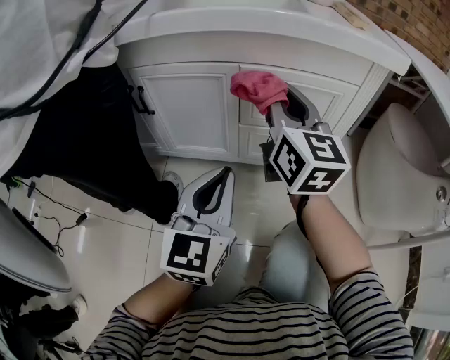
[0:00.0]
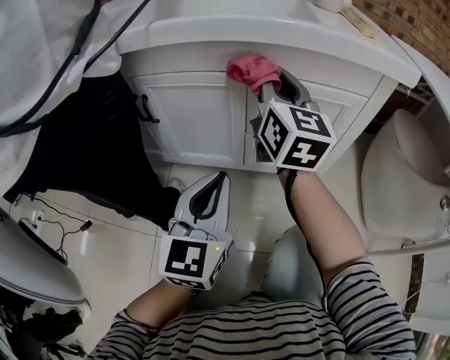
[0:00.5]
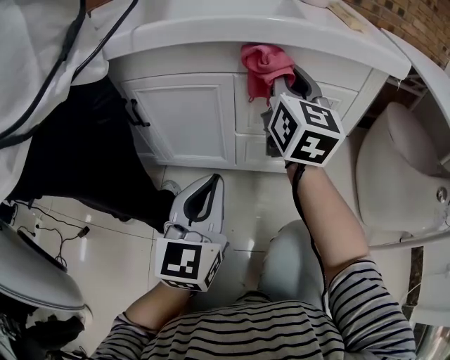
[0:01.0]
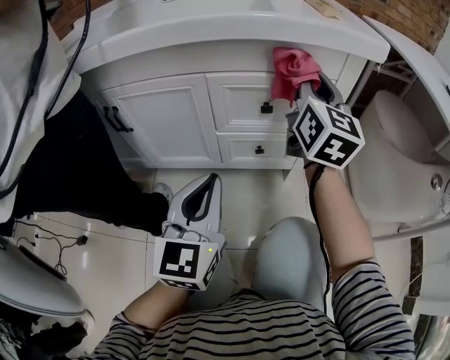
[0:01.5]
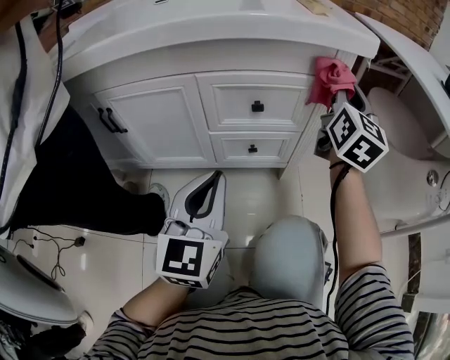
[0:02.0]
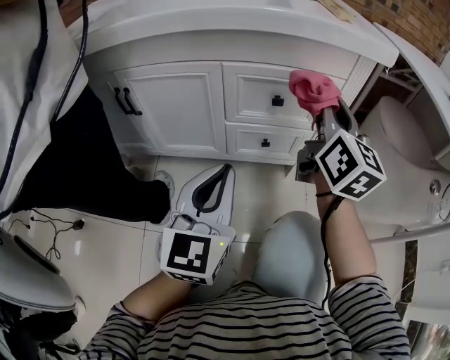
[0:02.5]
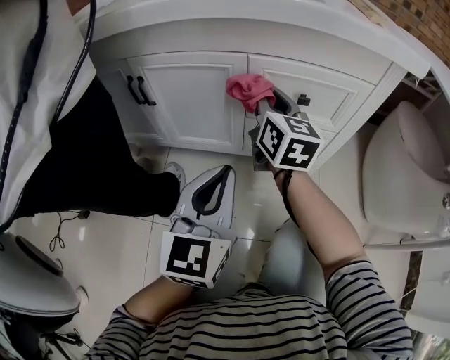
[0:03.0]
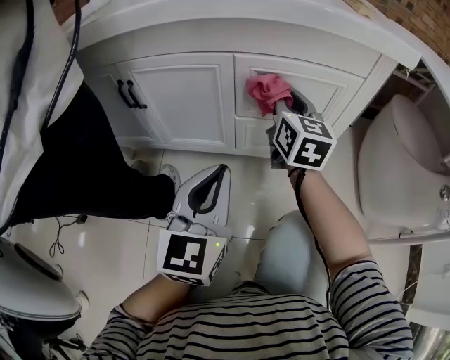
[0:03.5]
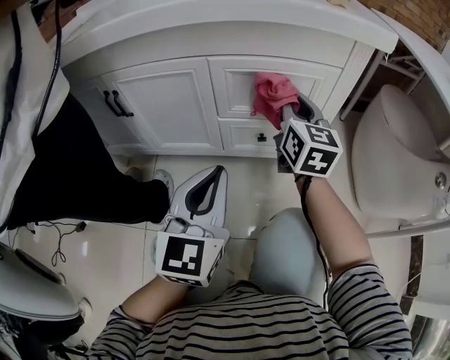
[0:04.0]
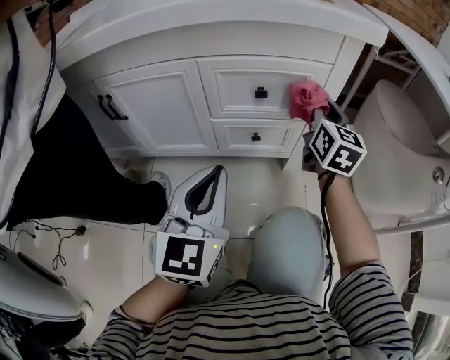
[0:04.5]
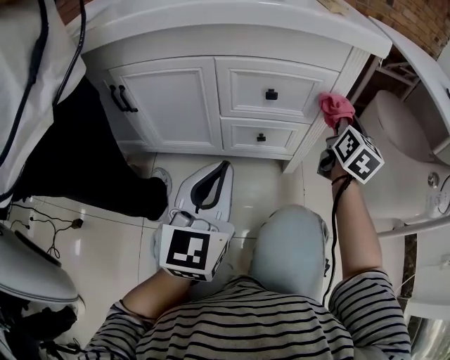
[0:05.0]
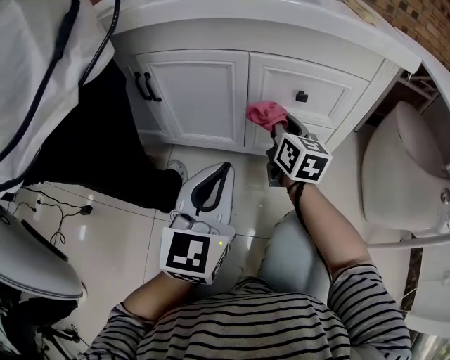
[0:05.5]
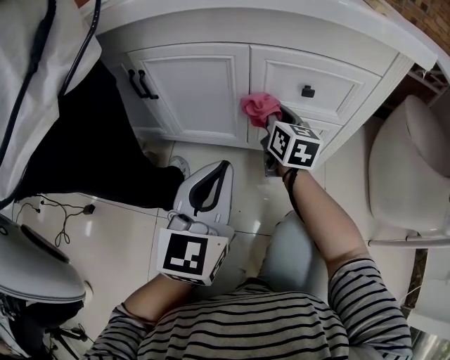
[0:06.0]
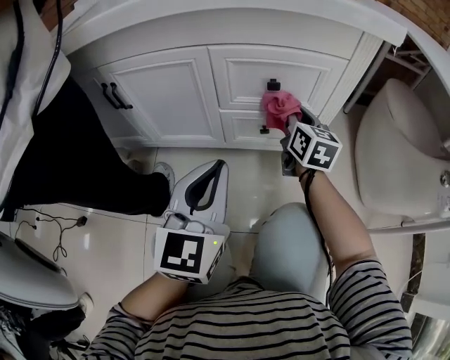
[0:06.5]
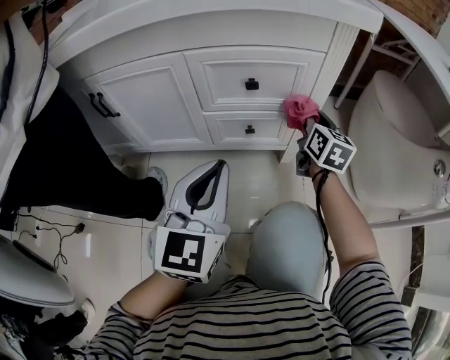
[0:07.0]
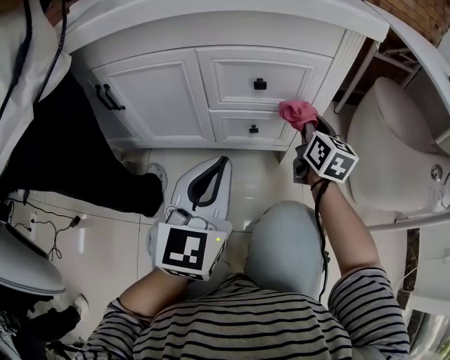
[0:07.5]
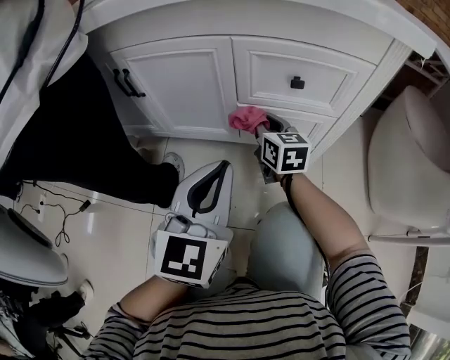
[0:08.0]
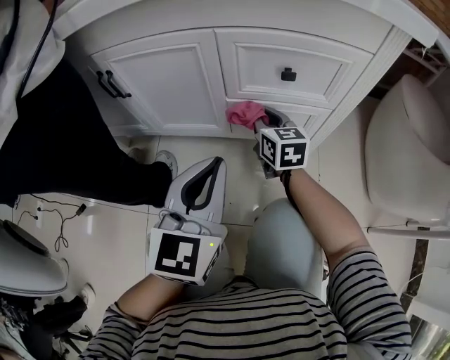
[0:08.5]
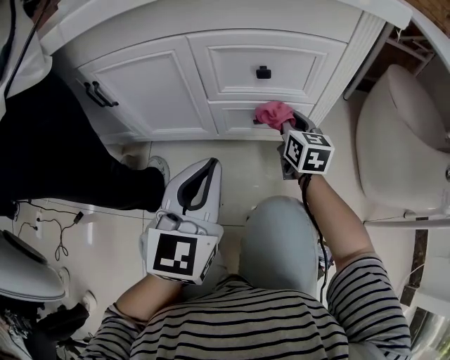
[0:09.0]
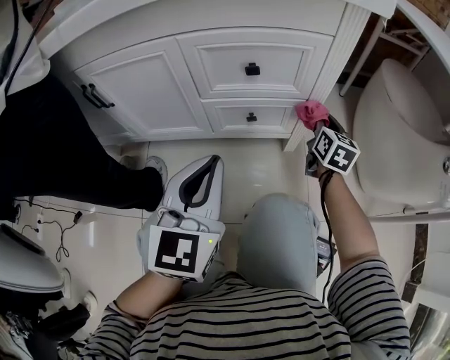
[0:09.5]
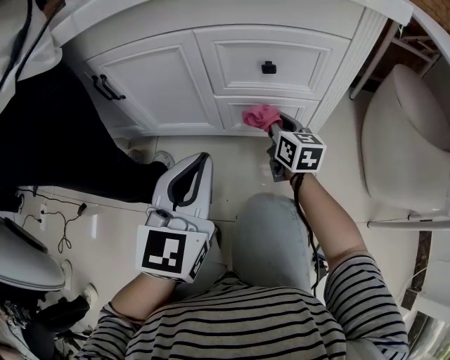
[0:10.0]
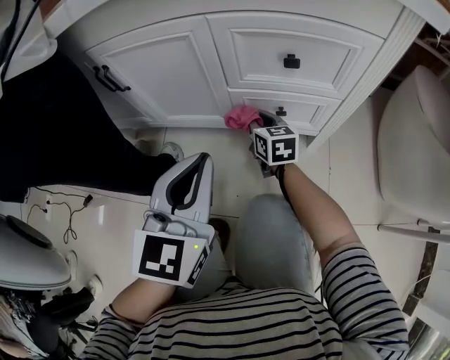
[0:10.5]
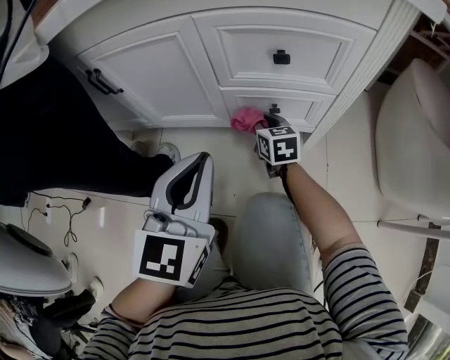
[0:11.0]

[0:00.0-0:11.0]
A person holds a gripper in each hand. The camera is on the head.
0:00.0 to 0:02.0: The left gripper heads to the right, covering approximately 5 cm; the right gripper travels to the right by about 25 cm, and swivels roughly 30 degrees.
0:02.0 to 0:03.5: The left gripper is displaced to the left by roughly 5 cm, while the right gripper heads to the left and downward, covering roughly 25 cm, and rotates some 20 degrees.
0:03.5 to 0:05.5: The right gripper heads downward, covering roughly 5 cm, and travels to the right and back again, approximately 25 cm each way.
0:05.5 to 0:07.5: The right gripper moves to the right, roughly 20 cm. The left gripper goes about 10 cm to the right.
0:07.5 to 0:09.0: The right gripper goes some 10 cm downward, and moves roughly 20 cm to the left and comes back.
0:09.0 to 0:11.0: The right gripper heads to the left and downward, covering approximately 15 cm.

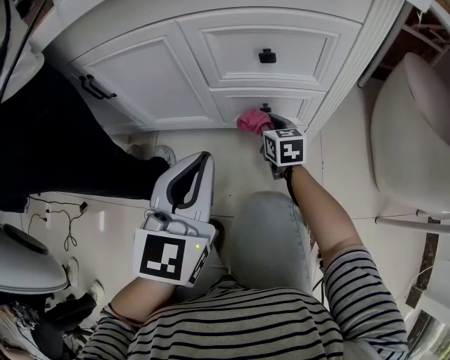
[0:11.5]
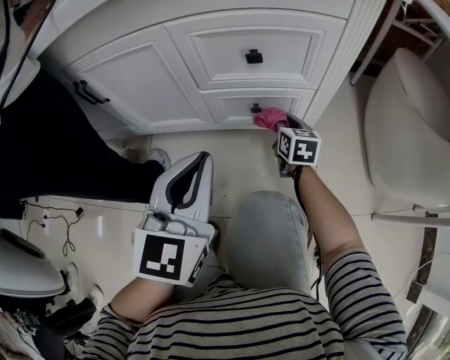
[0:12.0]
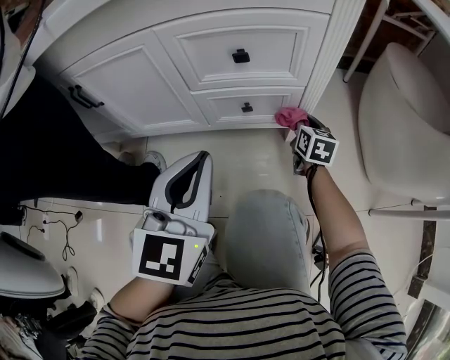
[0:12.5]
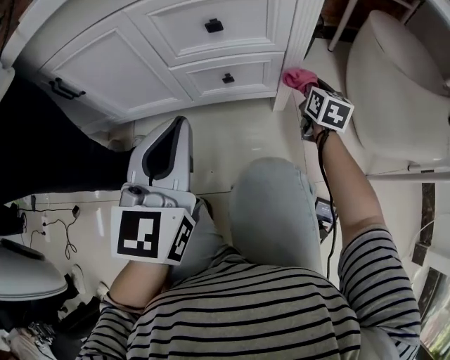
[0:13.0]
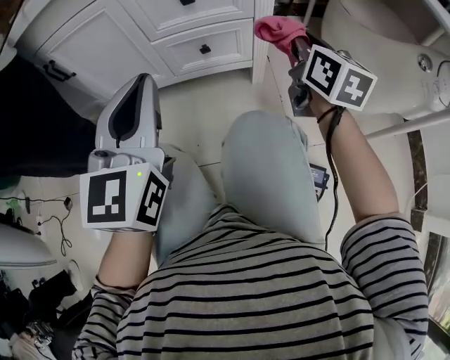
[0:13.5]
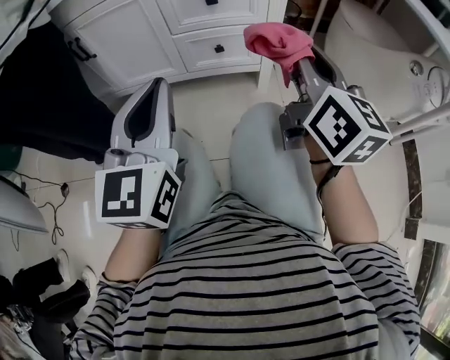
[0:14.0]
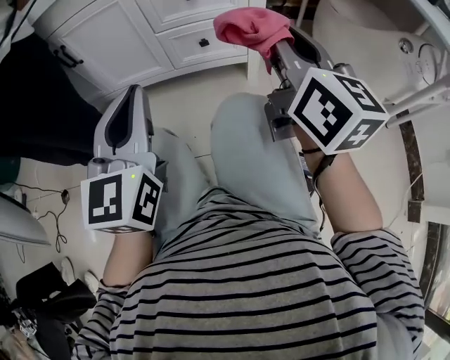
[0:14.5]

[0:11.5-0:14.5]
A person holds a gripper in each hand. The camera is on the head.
0:11.5 to 0:13.0: The right gripper shifts approximately 25 cm to the right, and rotates roughly 30 degrees.
0:13.0 to 0:14.5: The left gripper moves backward, roughly 15 cm; the right gripper heads upward and backward, covering about 40 cm, and tips its fingers upward by about 30 degrees.

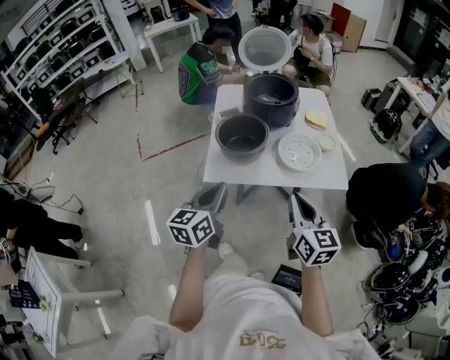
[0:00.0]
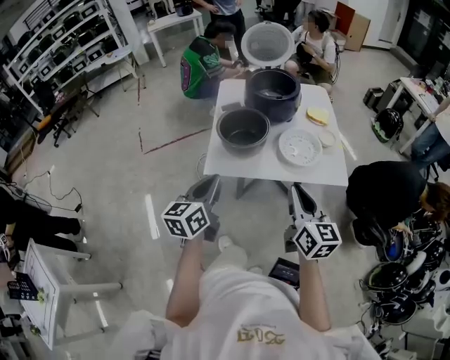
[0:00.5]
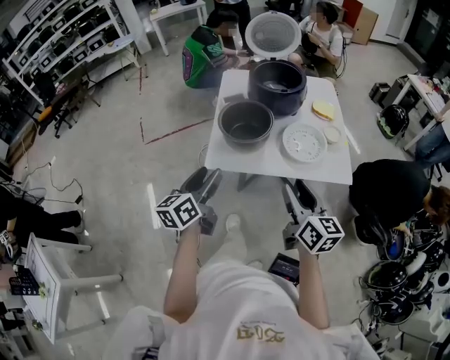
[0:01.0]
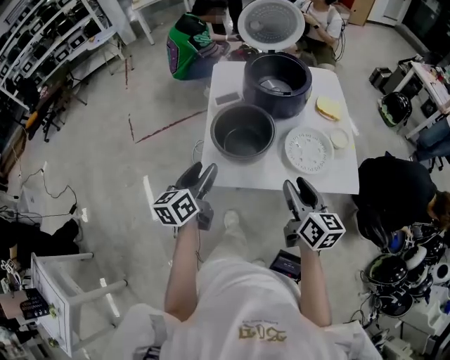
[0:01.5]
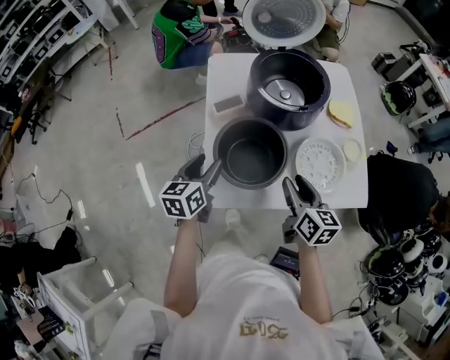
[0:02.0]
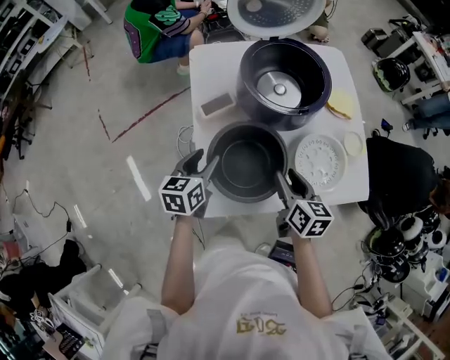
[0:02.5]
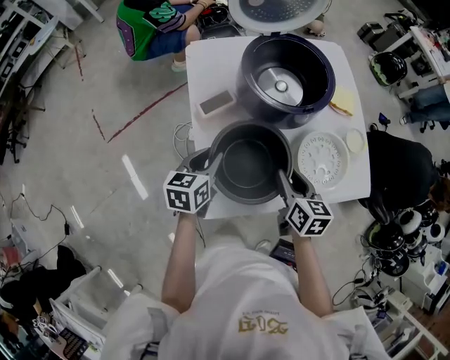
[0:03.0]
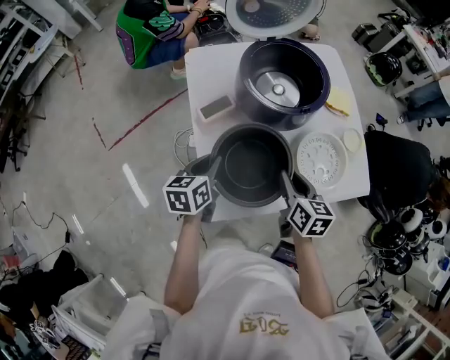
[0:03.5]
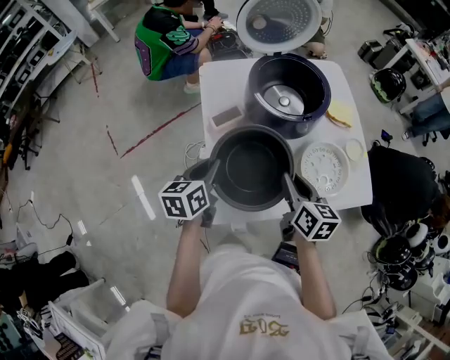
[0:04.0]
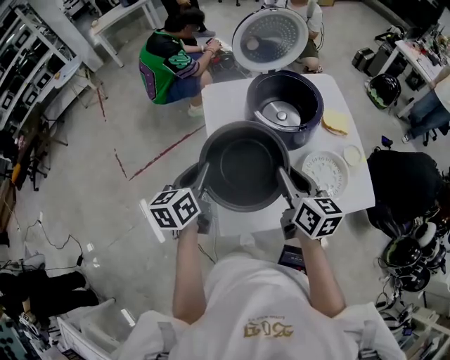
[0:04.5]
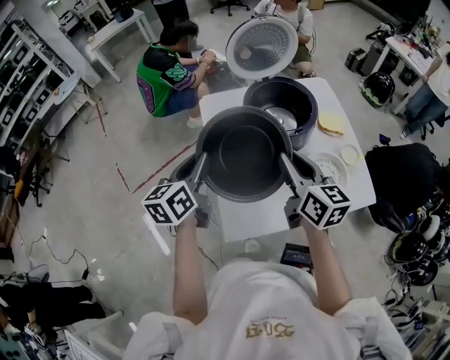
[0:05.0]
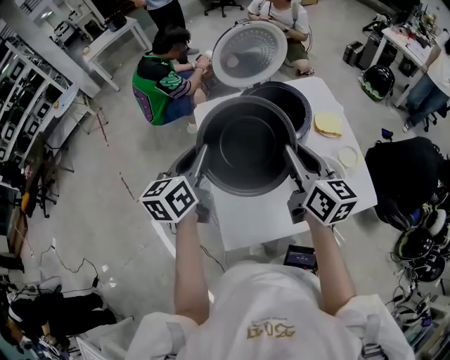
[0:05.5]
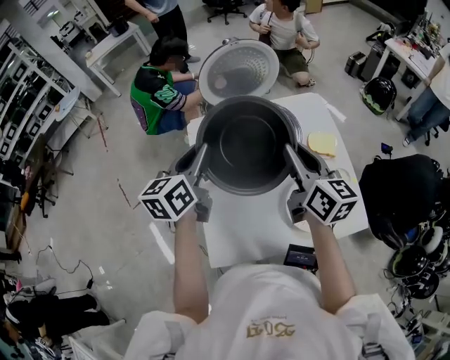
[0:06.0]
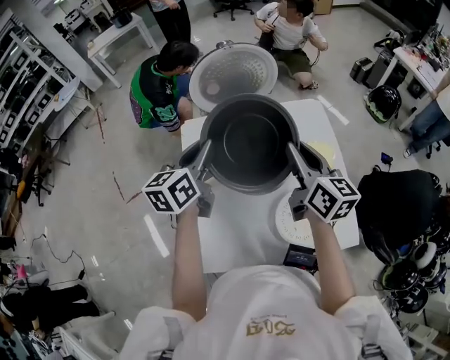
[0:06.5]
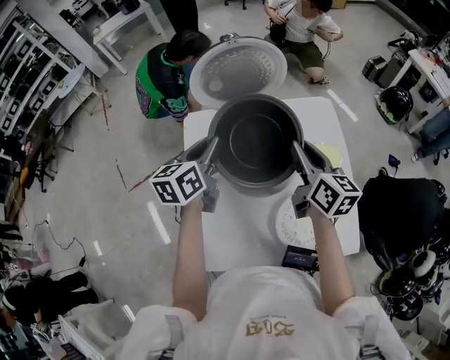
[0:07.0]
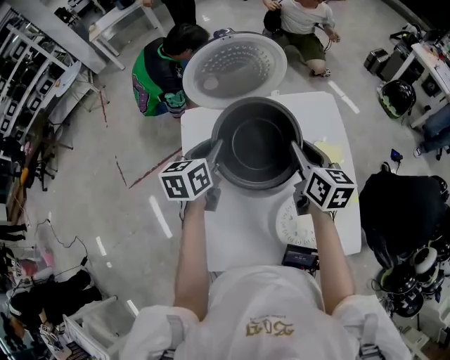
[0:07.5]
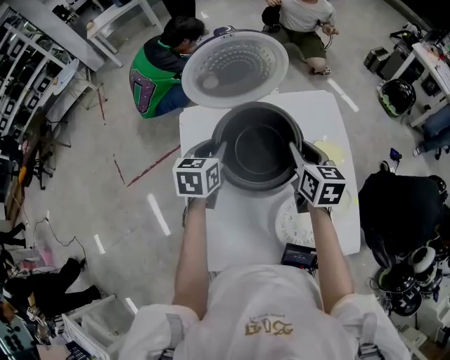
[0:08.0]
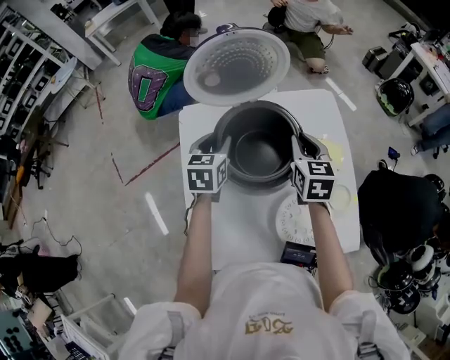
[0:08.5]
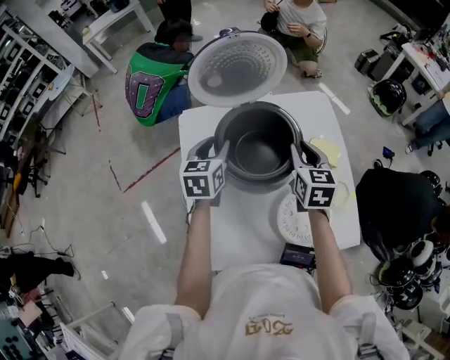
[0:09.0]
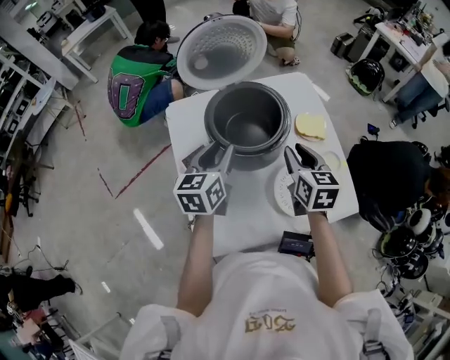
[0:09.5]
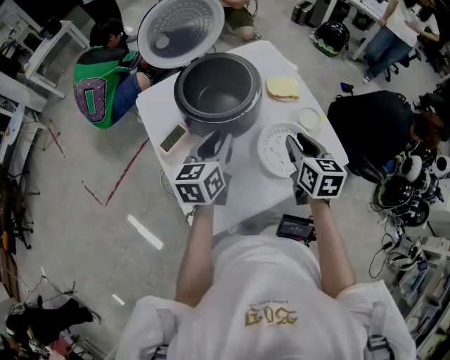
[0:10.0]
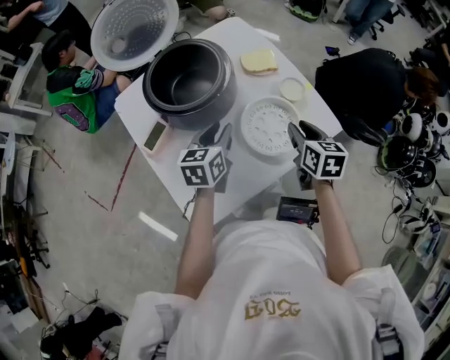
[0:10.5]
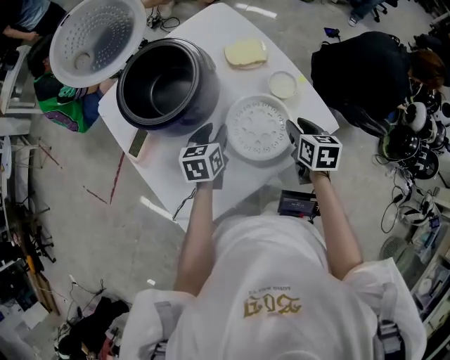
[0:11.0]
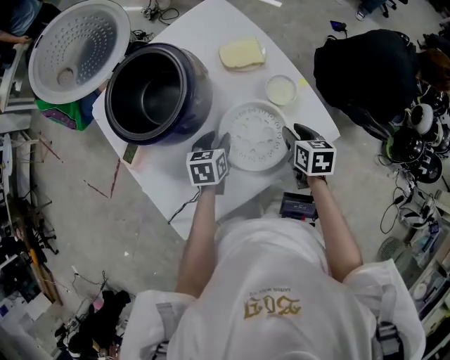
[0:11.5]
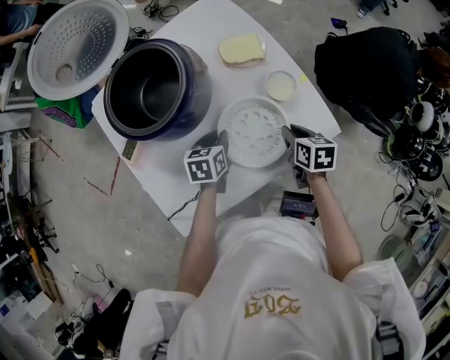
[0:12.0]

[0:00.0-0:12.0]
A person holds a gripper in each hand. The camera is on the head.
0:00.0 to 0:02.0: The right gripper travels forward and downward by approximately 30 cm, turns by roughly 20 degrees, and opens up. Meanwhile the left gripper moves forward, some 30 cm, and opens.
0:02.0 to 0:04.0: The left gripper heads forward, covering about 5 cm, and closes.
0:04.0 to 0:06.0: Both grippers travel together upward and forward, about 25 cm. The right gripper rotates some 20 degrees.
0:06.0 to 0:08.0: The right gripper is displaced forward and downward by roughly 20 cm, and changes its angle by about 20 degrees; the left gripper heads downward and forward, covering about 20 cm, and changes its angle by approximately 30 degrees.
0:08.0 to 0:10.0: The left gripper shifts roughly 15 cm backward and to the right, and rotates roughly 30 degrees, while the right gripper moves backward, about 20 cm, and turns by approximately 20 degrees.
0:10.0 to 0:12.0: Both grippers move downward and to the right, approximately 25 cm. The left gripper angles its fingers downward, by some 30 degrees, while the right gripper rotates approximately 30 degrees.
